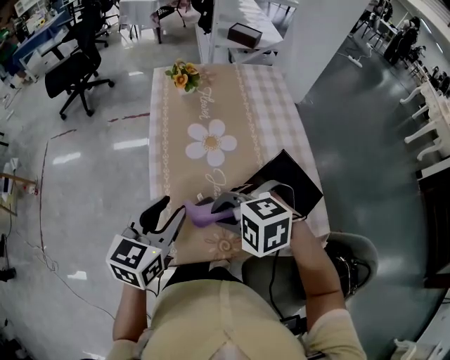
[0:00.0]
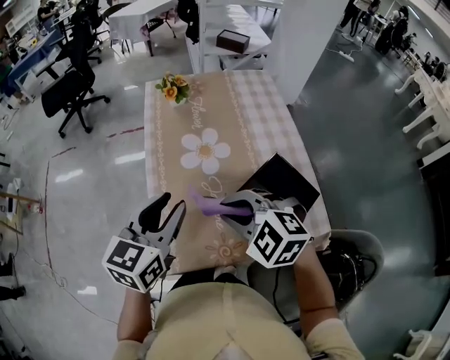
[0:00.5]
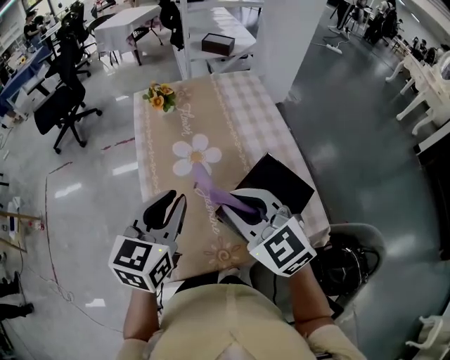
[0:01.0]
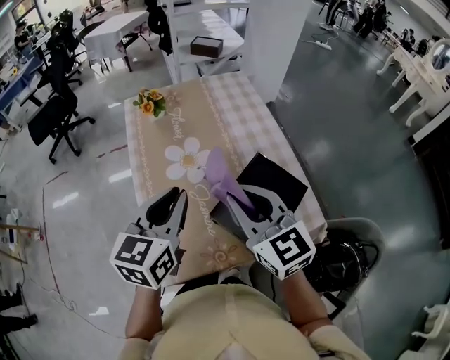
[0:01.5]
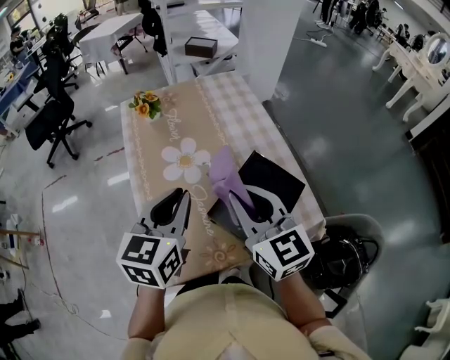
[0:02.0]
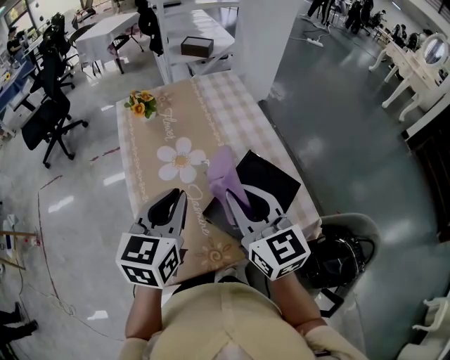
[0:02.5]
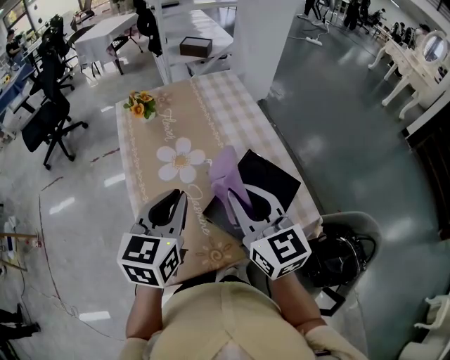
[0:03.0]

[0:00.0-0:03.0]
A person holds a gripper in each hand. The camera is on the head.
0:00.0 to 0:01.5: The right gripper is displaced upward by about 10 cm, and tips its fingers upward by about 50 degrees; the left gripper ends up about 10 cm from where it was, and closes up.
0:01.5 to 0:03.0: The grippers stay close to where they were, moving slightly.

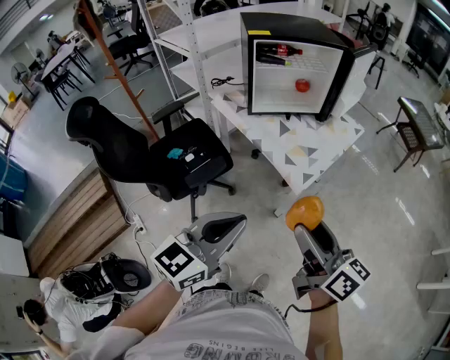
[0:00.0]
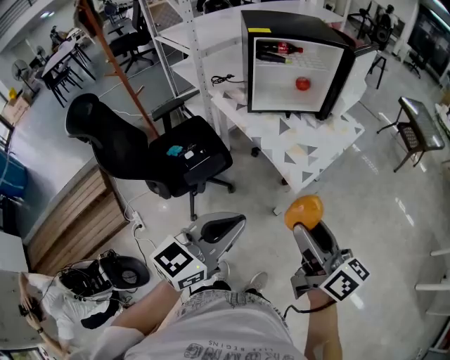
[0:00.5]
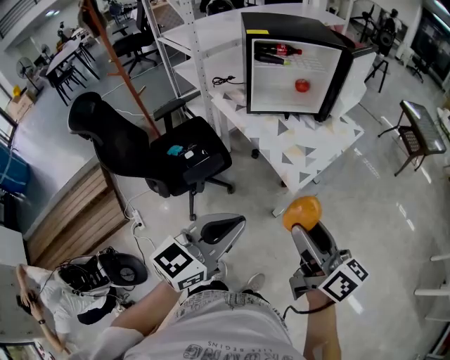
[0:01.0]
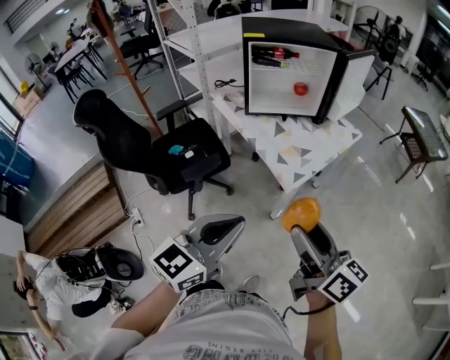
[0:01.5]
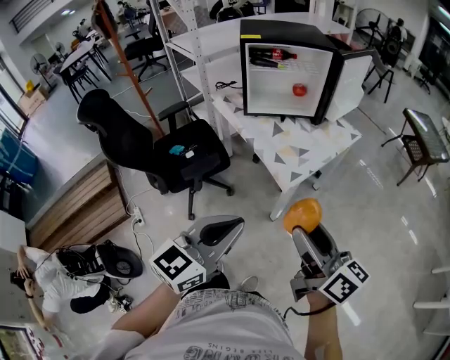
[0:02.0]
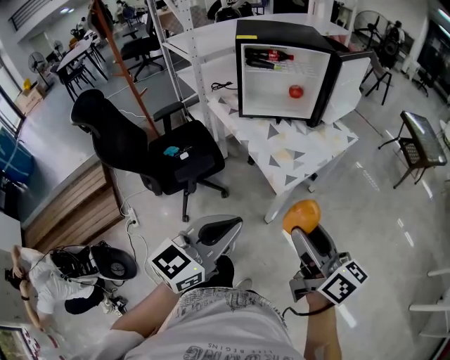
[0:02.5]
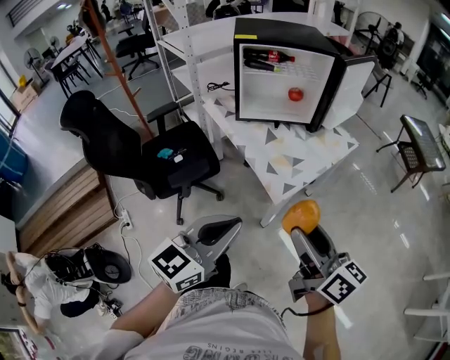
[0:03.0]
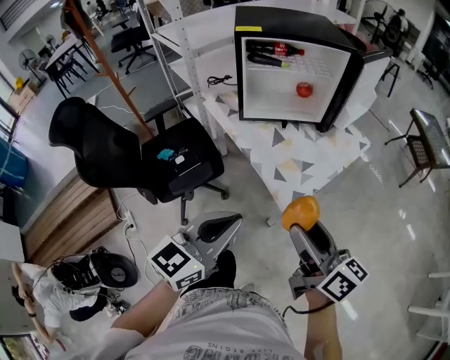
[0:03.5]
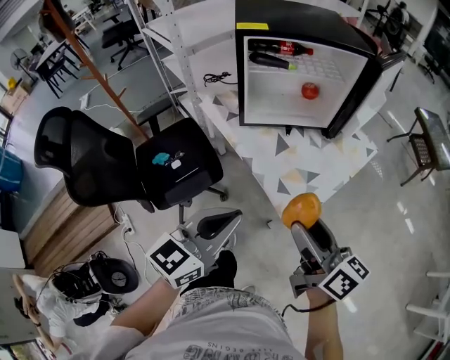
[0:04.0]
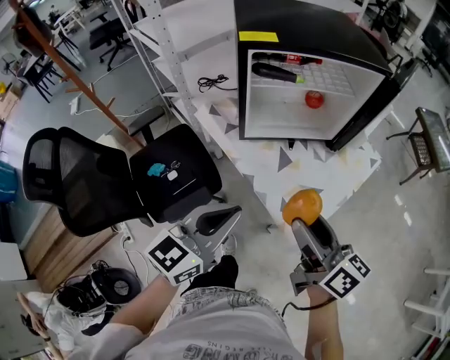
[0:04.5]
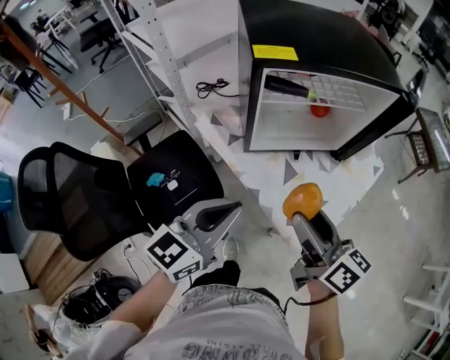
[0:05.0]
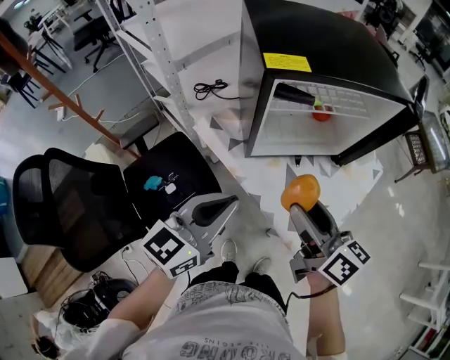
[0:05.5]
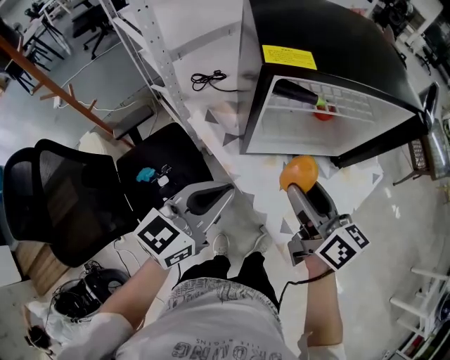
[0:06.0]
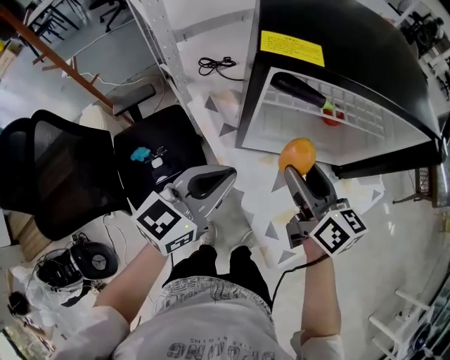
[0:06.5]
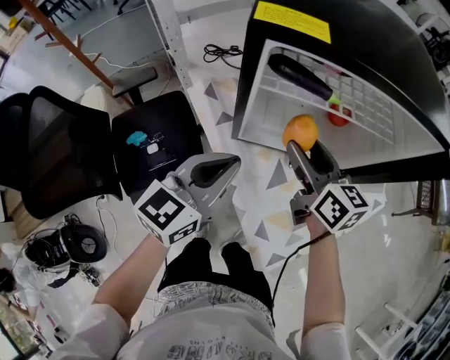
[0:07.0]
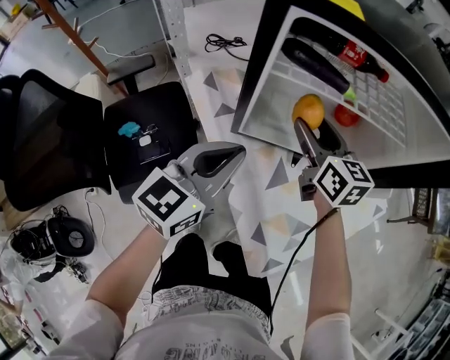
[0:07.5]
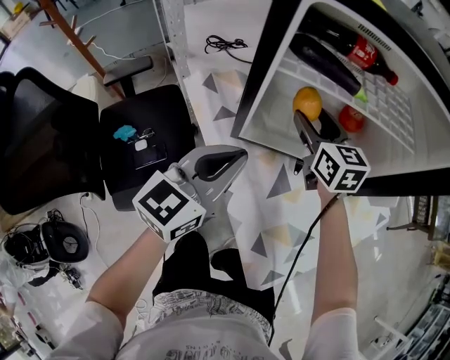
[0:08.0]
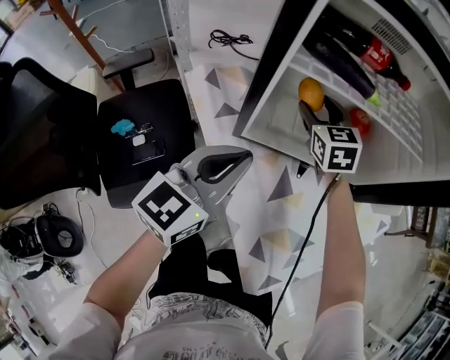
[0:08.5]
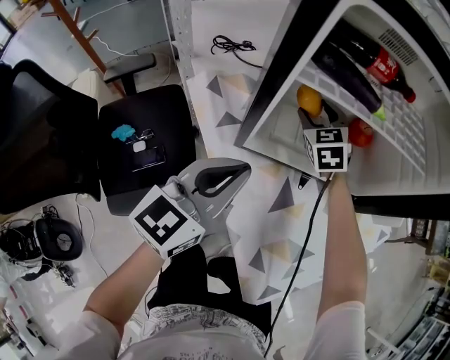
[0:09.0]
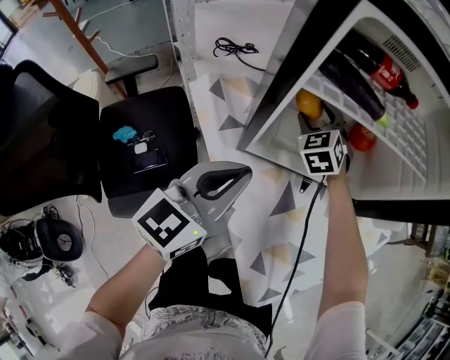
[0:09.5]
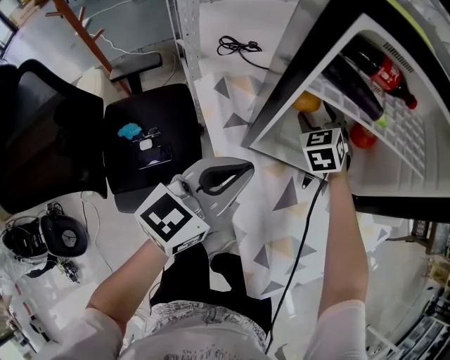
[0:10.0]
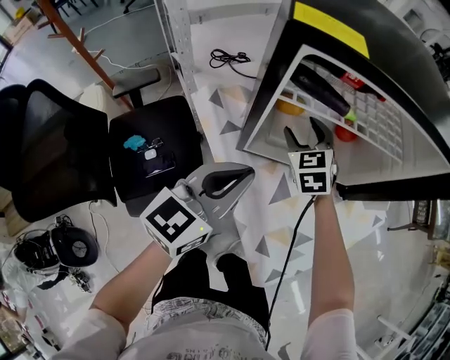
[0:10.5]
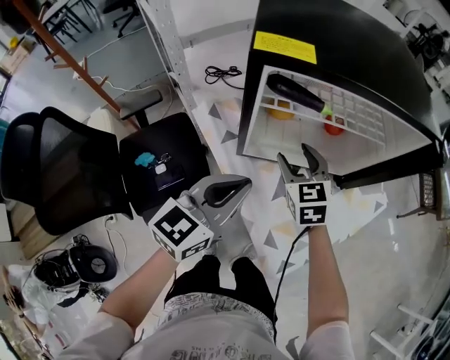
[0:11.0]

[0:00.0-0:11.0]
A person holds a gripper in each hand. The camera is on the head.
0:00.0 to 0:02.0: The grippers both shift to the right by roughly 10 cm.
0:02.0 to 0:03.5: The grippers both shift forward by about 15 cm.
0:03.5 to 0:05.5: The two grippers go approximately 30 cm forward and to the left.
0:05.5 to 0:07.5: The right gripper shifts approximately 25 cm forward and downward, and rotates roughly 30 degrees; the left gripper travels downward, forward and to the right by about 15 cm.
0:07.5 to 0:09.0: The right gripper goes roughly 15 cm forward and downward, and changes its angle by some 40 degrees.
0:09.0 to 0:11.0: The right gripper is displaced backward and upward by roughly 20 cm; the left gripper travels upward by roughly 10 cm.

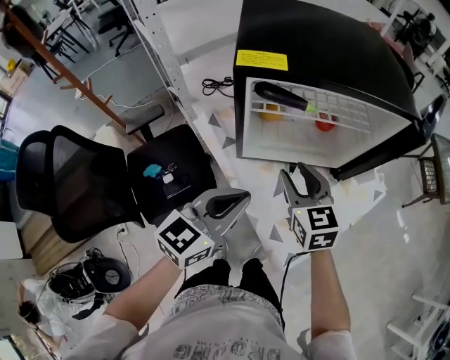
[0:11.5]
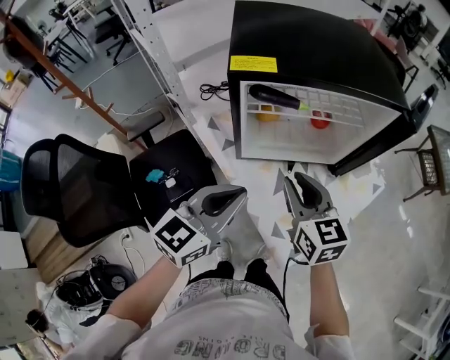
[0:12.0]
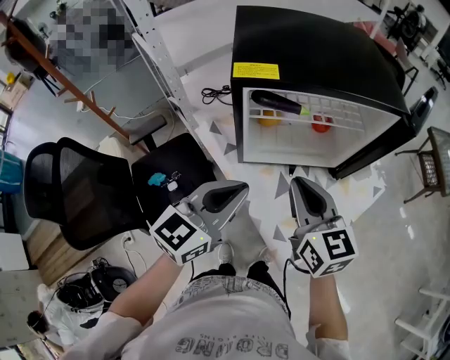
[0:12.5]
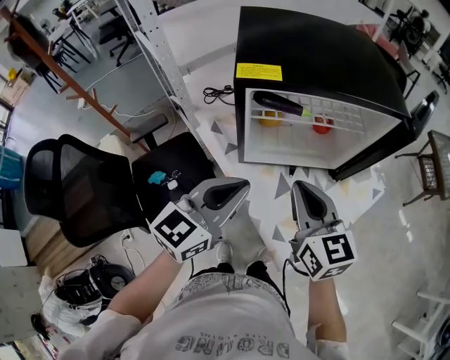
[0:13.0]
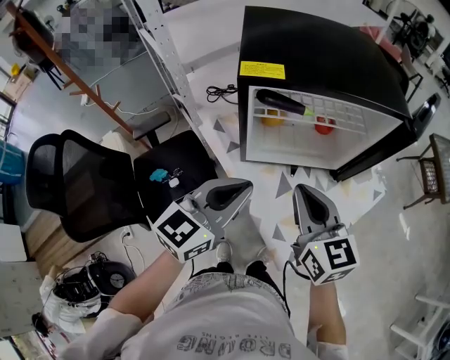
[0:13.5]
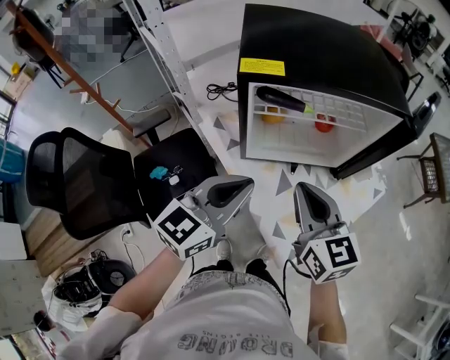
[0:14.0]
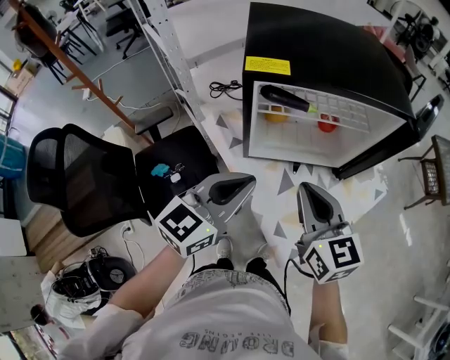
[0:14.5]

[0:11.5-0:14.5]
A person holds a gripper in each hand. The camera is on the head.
0:11.5 to 0:13.0: The left gripper is displaced upward by some 5 cm, while the right gripper travels upward and backward by roughly 10 cm, and closes.
0:13.0 to 0:14.5: The grippers move only a little.

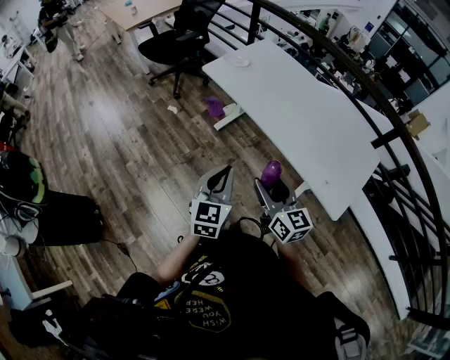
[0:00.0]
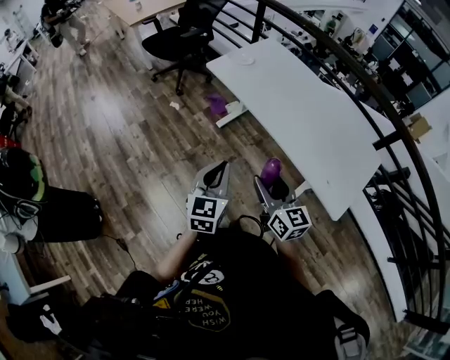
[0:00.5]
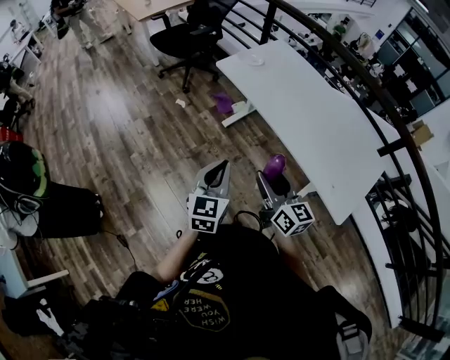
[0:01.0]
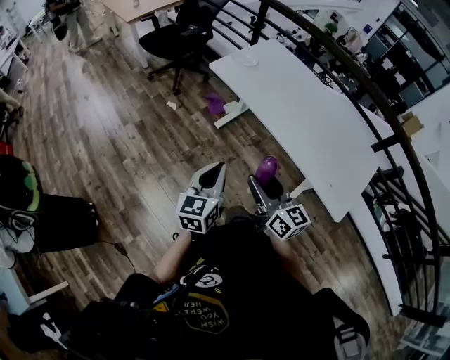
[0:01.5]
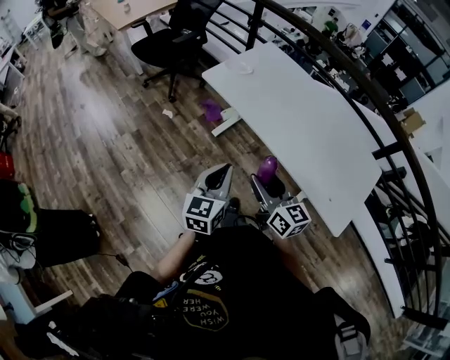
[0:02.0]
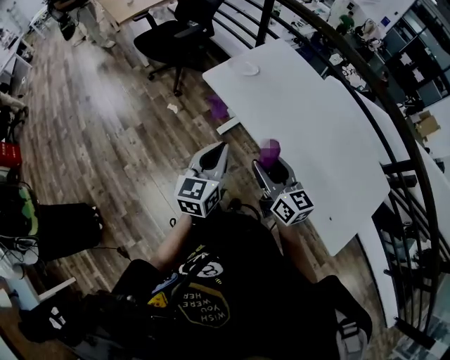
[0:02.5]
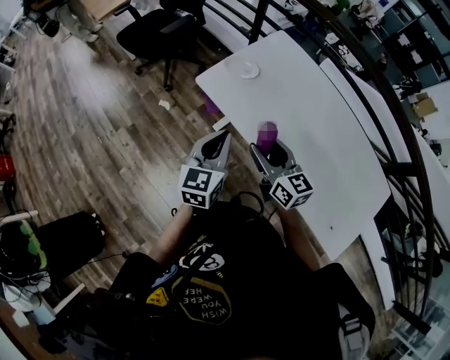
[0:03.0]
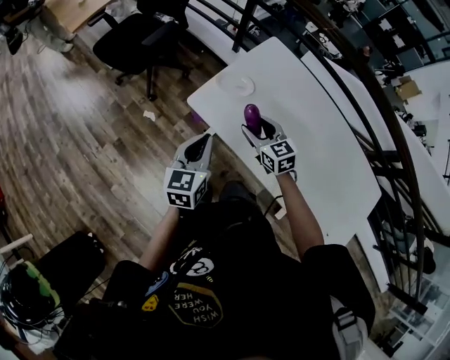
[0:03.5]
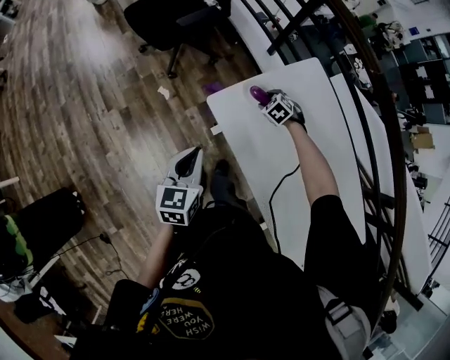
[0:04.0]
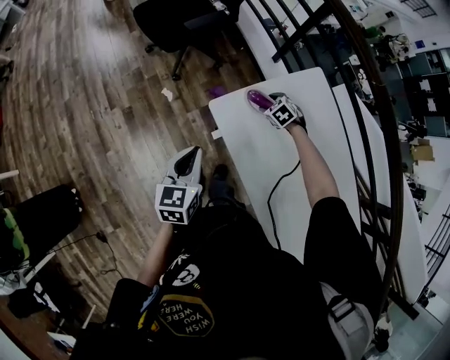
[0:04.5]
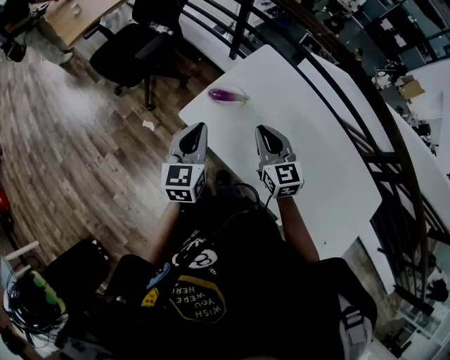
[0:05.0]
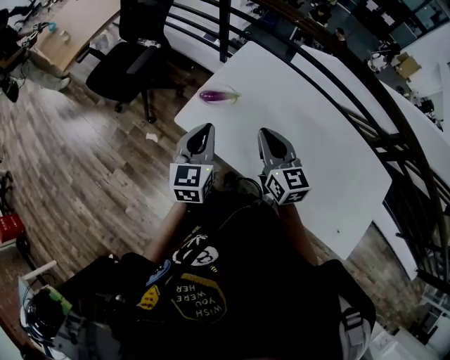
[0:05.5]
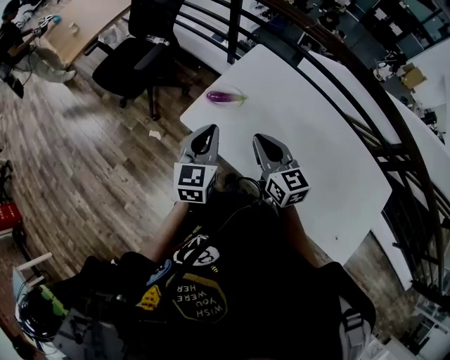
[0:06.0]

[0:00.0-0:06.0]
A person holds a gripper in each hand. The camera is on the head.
0:00.0 to 0:02.0: The two grippers go approximately 10 cm forward.
0:02.0 to 0:04.0: Both grippers are carried forward, approximately 60 cm. The right gripper shifts approximately 30 cm downward, and tips its fingers downward by some 60 degrees; the left gripper rotates roughly 20 degrees.
0:04.0 to 0:06.0: The left gripper moves approximately 15 cm, and changes its angle by about 30 degrees. Meanwhile the right gripper moves upward, some 30 cm, tips its fingers upward by about 50 degrees, and closes.

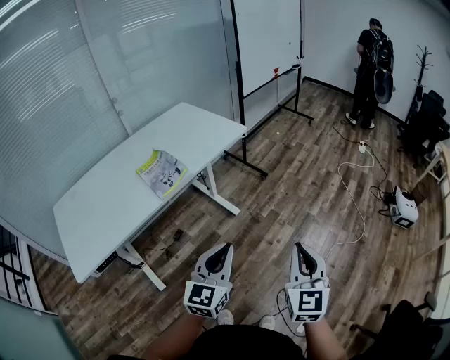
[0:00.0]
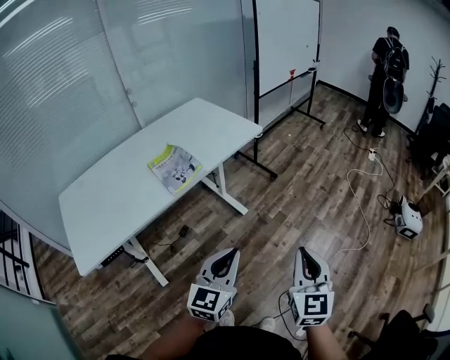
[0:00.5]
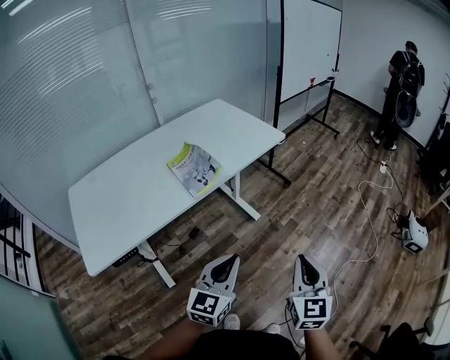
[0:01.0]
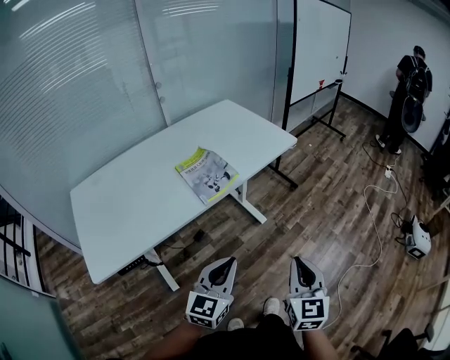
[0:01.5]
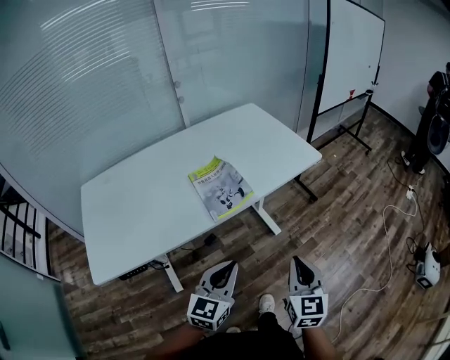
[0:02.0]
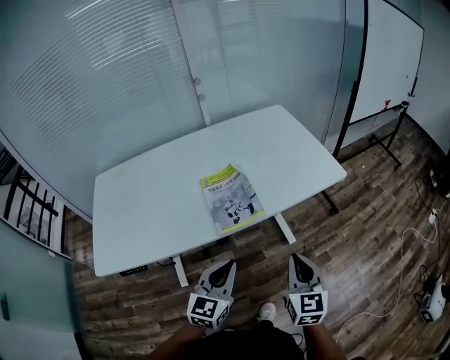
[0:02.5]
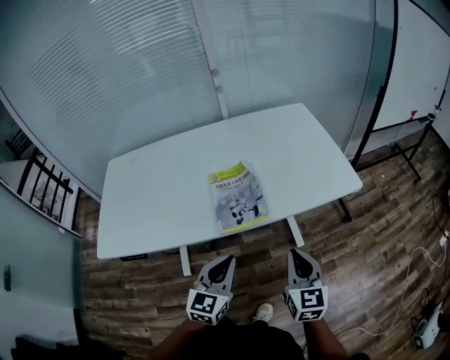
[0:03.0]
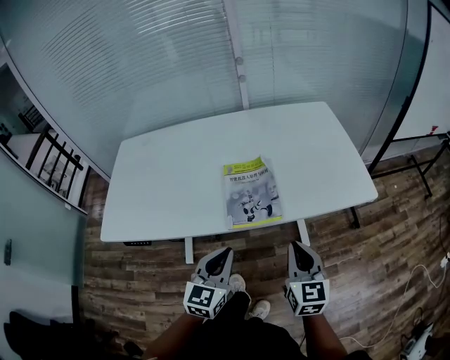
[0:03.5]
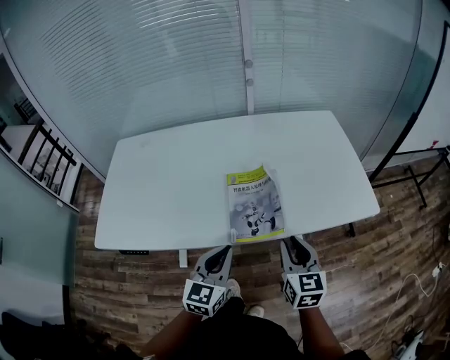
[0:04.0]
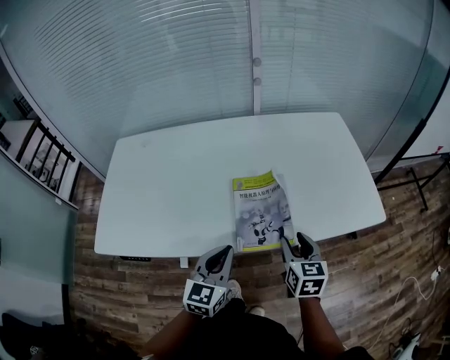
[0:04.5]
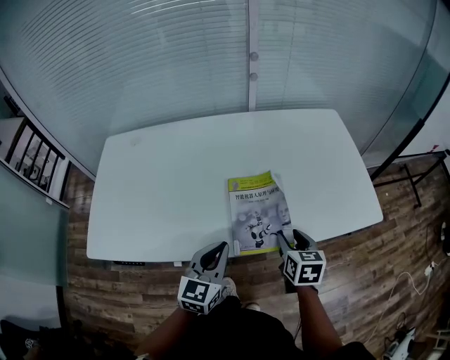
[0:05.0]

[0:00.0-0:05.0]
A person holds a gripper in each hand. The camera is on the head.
0:00.0 to 0:02.5: The right gripper shifts by approximately 35 cm, and rotates some 30 degrees. Meanwhile the left gripper changes place by roughly 25 cm, and swivels roughly 30 degrees.
0:02.5 to 0:05.0: The left gripper is displaced forward and to the left by some 15 cm. Meanwhile the right gripper travels forward and downward by about 25 cm, turns by approximately 30 degrees, and opens up.
